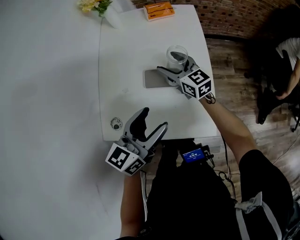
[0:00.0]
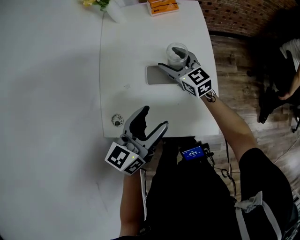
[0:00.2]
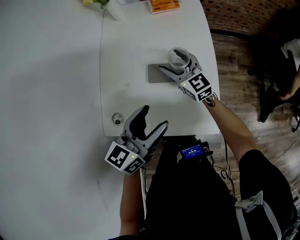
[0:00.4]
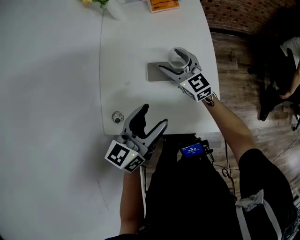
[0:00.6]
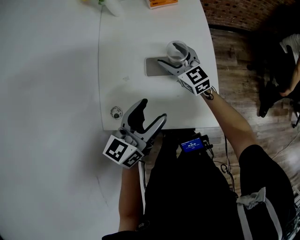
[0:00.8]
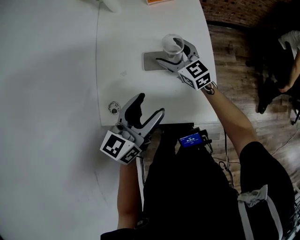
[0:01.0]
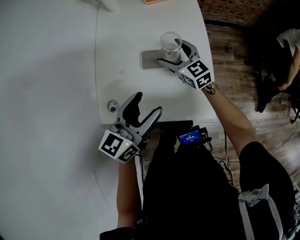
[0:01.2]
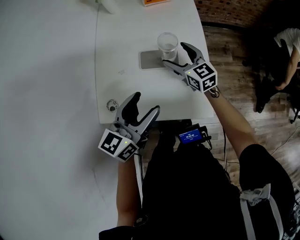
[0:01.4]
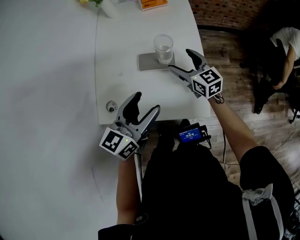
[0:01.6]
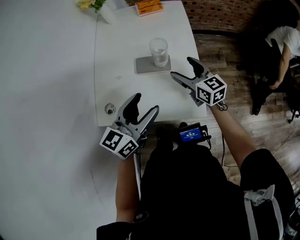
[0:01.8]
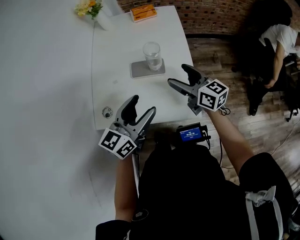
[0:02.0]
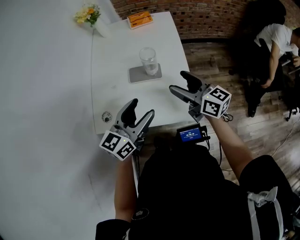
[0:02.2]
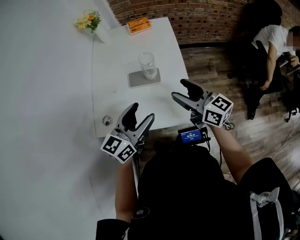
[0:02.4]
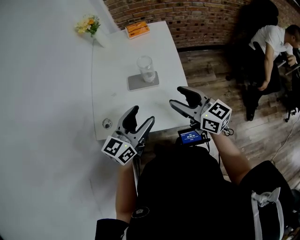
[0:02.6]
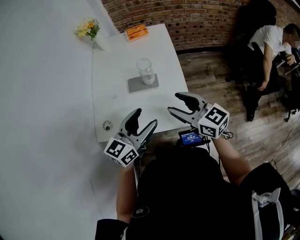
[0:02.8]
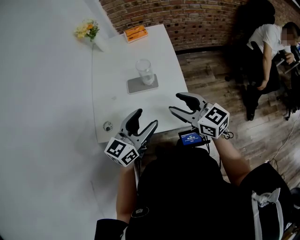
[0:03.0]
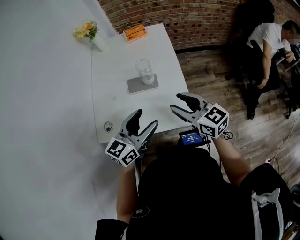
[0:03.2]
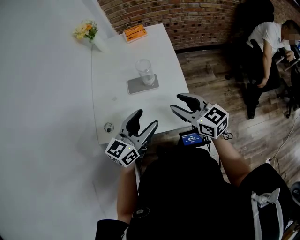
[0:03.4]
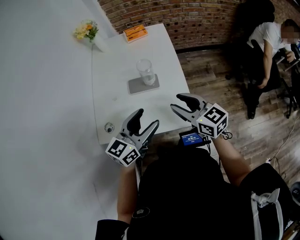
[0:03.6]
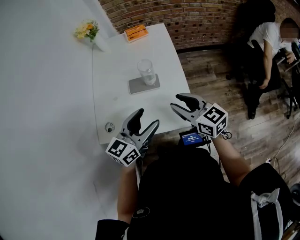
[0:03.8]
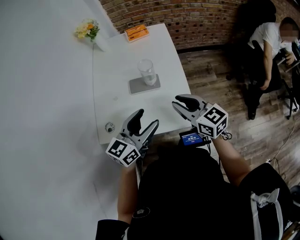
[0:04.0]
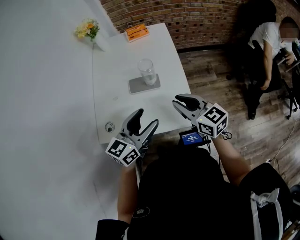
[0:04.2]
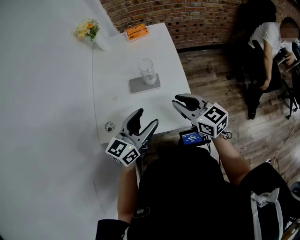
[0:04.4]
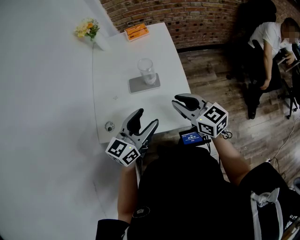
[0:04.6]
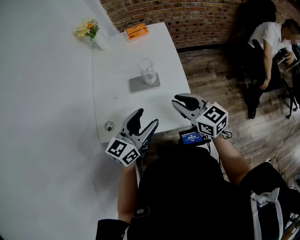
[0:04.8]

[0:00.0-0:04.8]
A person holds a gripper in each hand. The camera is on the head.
0:00.0 to 0:01.6: The right gripper heads backward and to the right, covering about 10 cm.
0:01.6 to 0:03.2: The right gripper travels backward and upward by some 20 cm, and closes up. Meanwhile the left gripper changes place by roughly 5 cm.
0:03.2 to 0:04.8: Both grippers stay put.

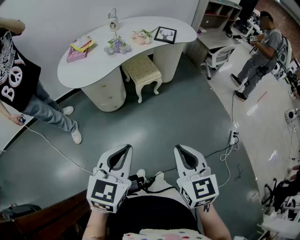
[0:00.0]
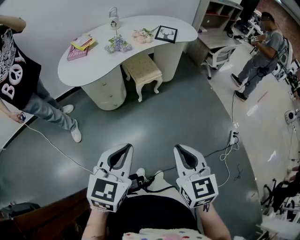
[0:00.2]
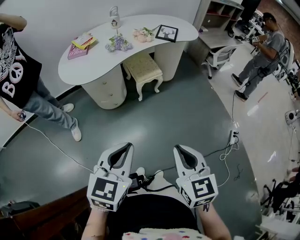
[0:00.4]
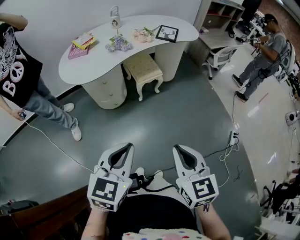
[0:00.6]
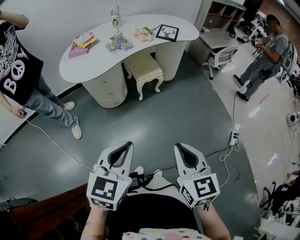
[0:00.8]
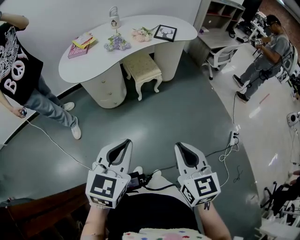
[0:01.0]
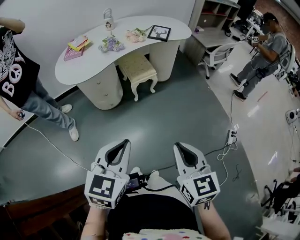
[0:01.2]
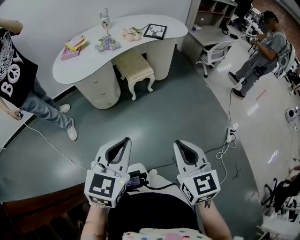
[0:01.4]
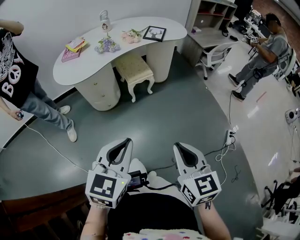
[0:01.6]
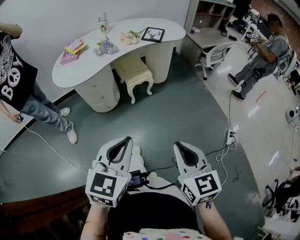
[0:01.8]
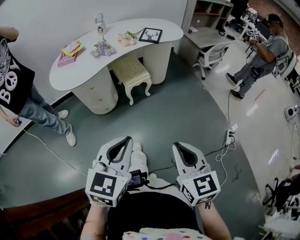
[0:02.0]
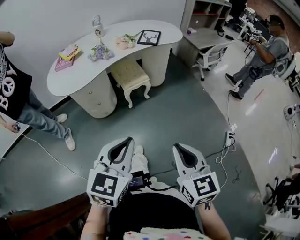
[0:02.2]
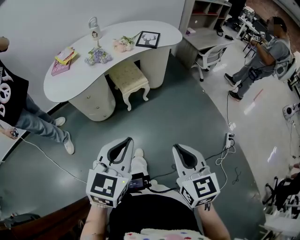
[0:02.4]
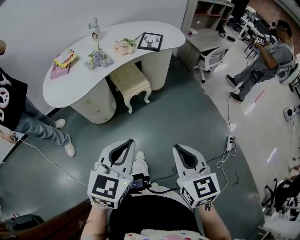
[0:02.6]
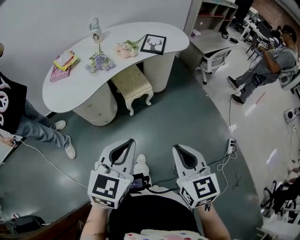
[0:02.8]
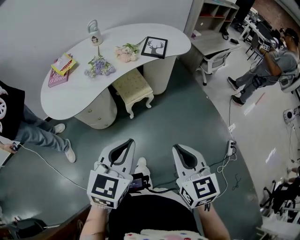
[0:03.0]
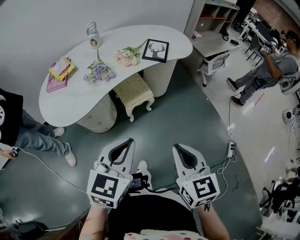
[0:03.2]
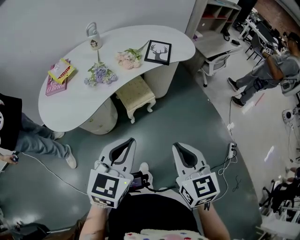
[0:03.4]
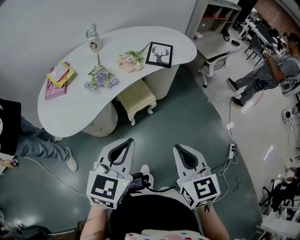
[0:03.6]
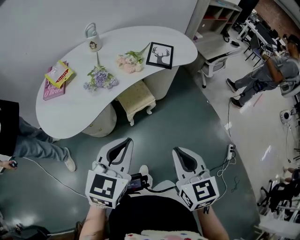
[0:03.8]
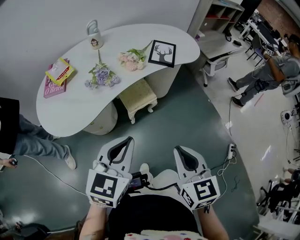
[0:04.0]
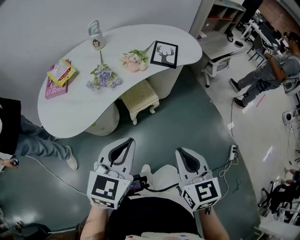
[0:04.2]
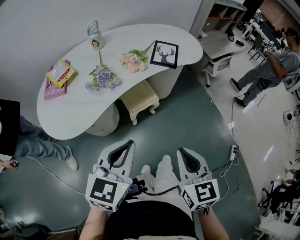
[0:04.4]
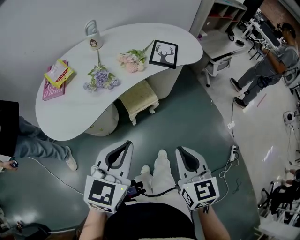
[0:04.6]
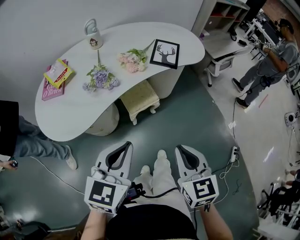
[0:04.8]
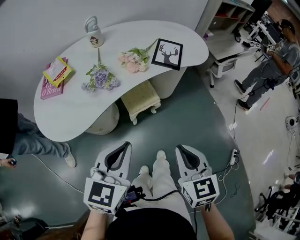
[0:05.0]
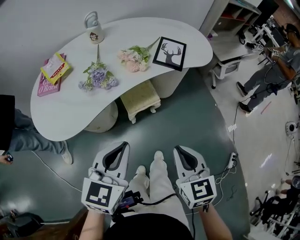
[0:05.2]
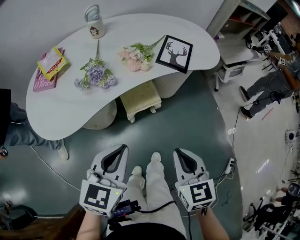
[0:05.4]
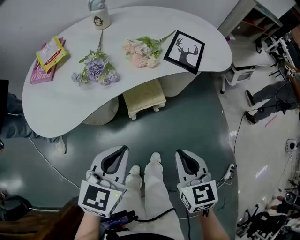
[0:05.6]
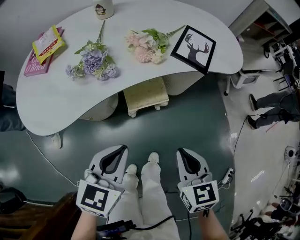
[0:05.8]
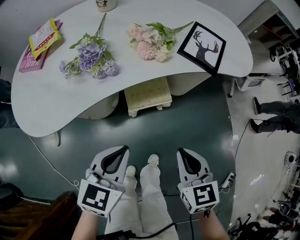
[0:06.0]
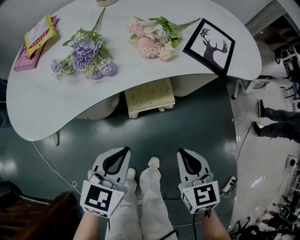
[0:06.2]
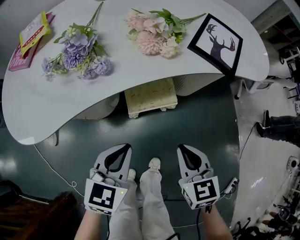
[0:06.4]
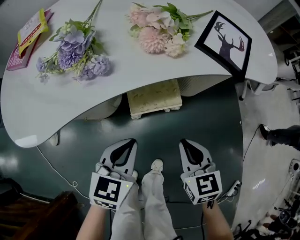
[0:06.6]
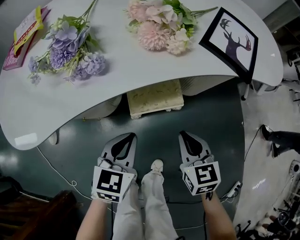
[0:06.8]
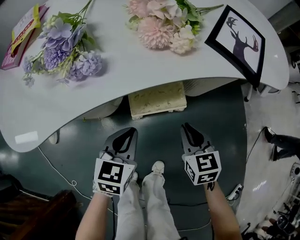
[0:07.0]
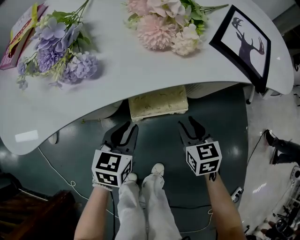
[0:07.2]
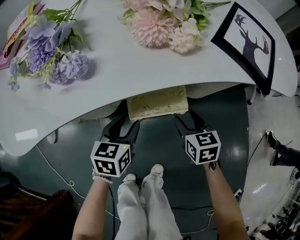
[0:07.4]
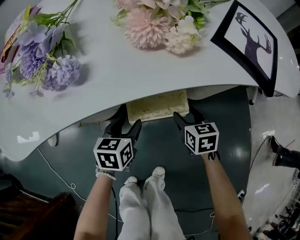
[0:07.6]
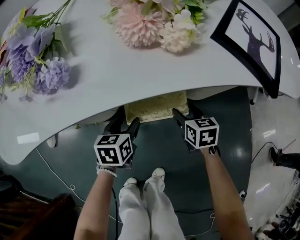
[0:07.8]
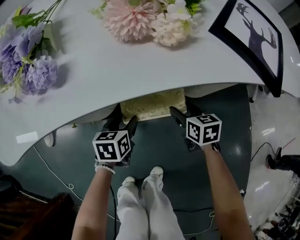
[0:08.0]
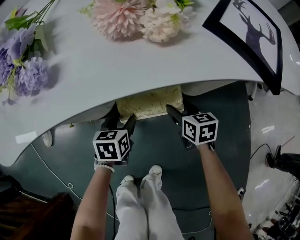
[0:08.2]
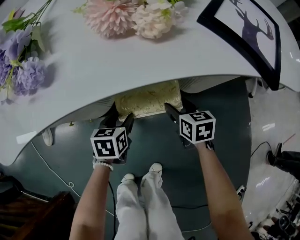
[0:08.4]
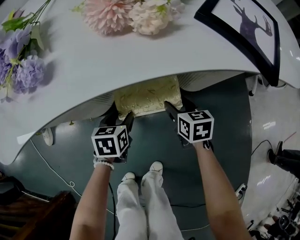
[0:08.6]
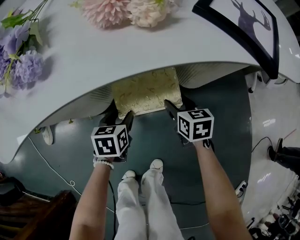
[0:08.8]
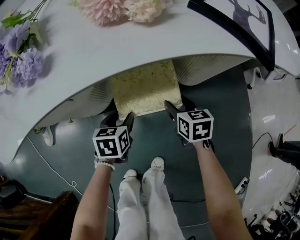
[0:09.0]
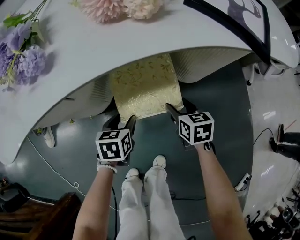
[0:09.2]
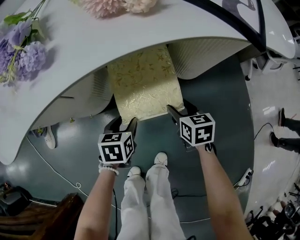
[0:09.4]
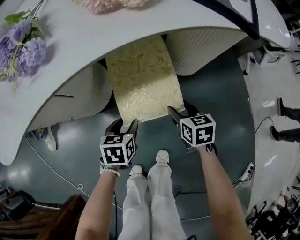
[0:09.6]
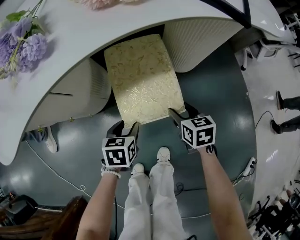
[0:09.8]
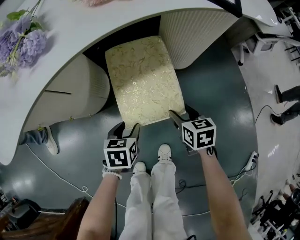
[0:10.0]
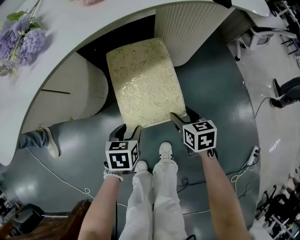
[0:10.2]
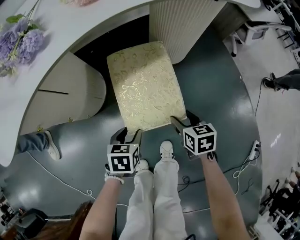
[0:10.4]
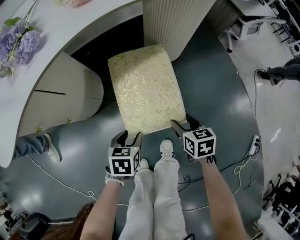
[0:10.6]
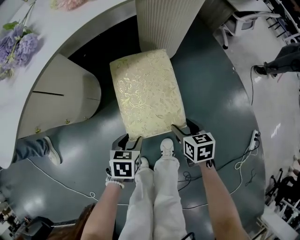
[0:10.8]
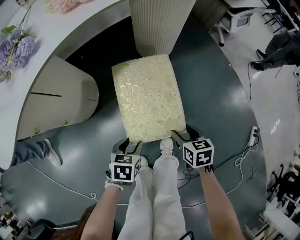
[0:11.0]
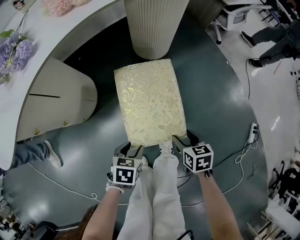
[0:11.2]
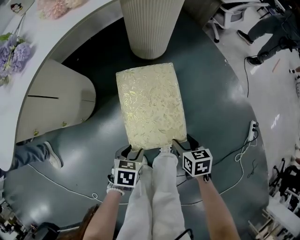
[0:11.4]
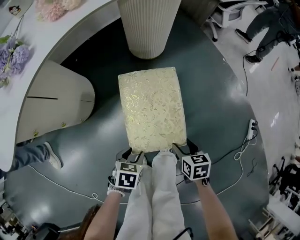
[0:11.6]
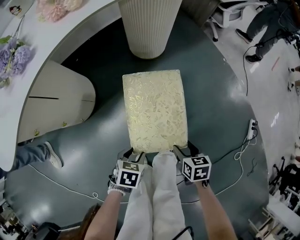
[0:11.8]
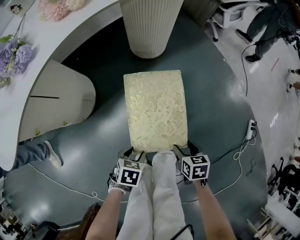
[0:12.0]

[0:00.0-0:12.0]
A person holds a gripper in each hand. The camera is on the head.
0:00.0 to 0:01.6: Both grippers move to the right, about 10 cm.
0:01.6 to 0:03.0: Both grippers move forward, about 20 cm.
0:03.0 to 0:04.4: The left gripper heads forward and to the left, covering some 15 cm; the right gripper shifts about 10 cm forward.
0:04.4 to 0:06.0: Both grippers travel together downward and forward, some 25 cm. The right gripper swivels about 20 degrees.
0:06.0 to 0:07.6: Both grippers travel together downward and forward, about 35 cm. The right gripper opens. Meanwhile the left gripper changes its angle by approximately 30 degrees, and opens.
0:07.6 to 0:09.0: The left gripper goes approximately 5 cm downward.
0:09.0 to 0:10.4: Both grippers move backward, some 15 cm.
0:10.4 to 0:12.0: The right gripper changes place by roughly 20 cm, and turns by some 20 degrees; the left gripper moves about 15 cm, and changes its angle by about 30 degrees.

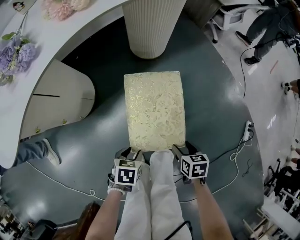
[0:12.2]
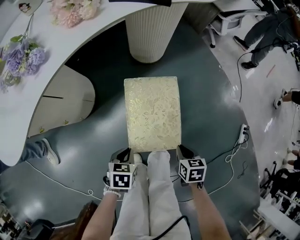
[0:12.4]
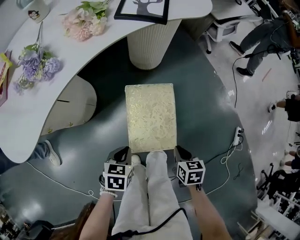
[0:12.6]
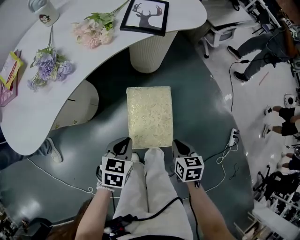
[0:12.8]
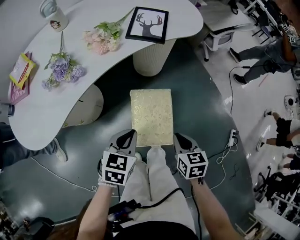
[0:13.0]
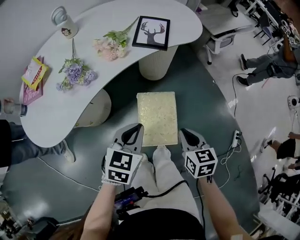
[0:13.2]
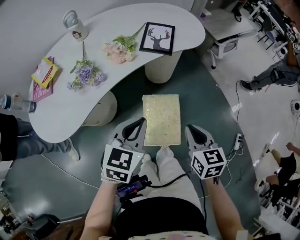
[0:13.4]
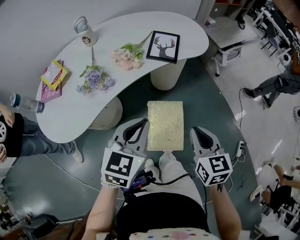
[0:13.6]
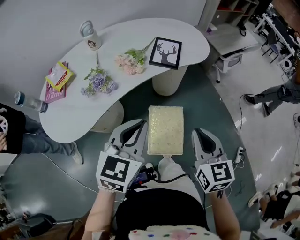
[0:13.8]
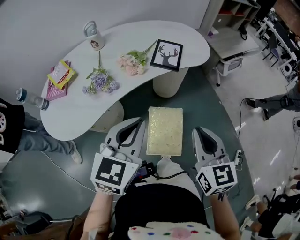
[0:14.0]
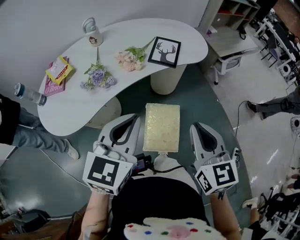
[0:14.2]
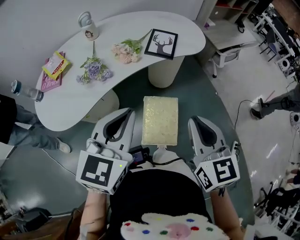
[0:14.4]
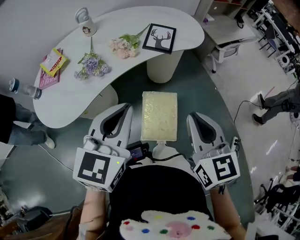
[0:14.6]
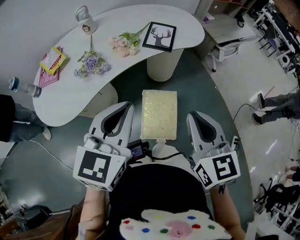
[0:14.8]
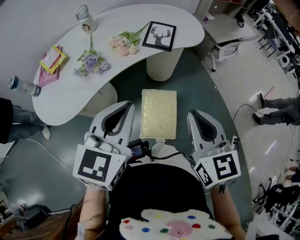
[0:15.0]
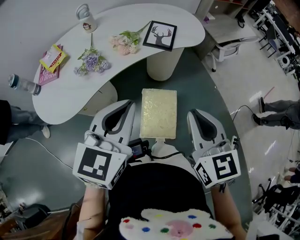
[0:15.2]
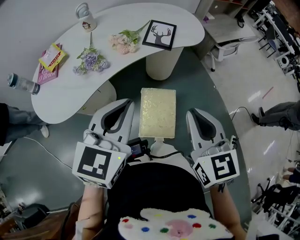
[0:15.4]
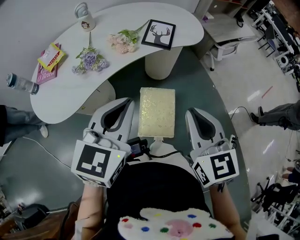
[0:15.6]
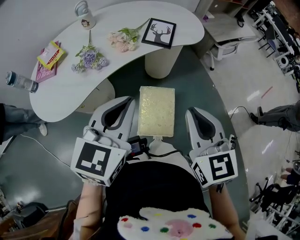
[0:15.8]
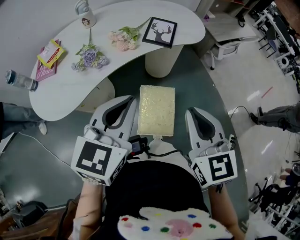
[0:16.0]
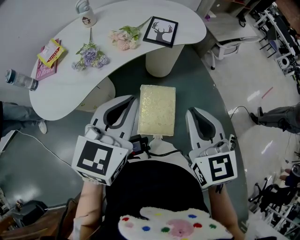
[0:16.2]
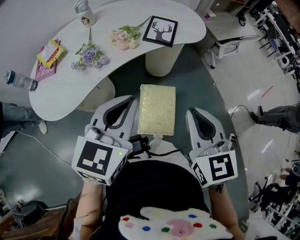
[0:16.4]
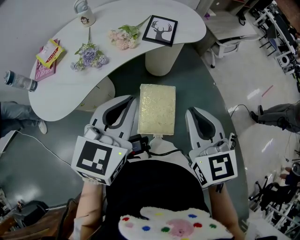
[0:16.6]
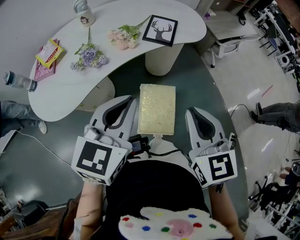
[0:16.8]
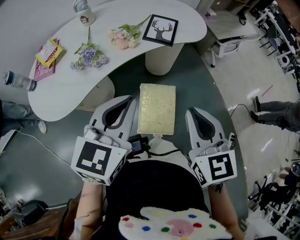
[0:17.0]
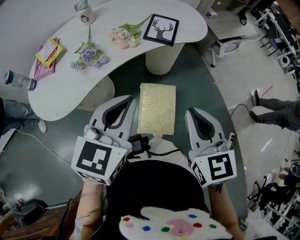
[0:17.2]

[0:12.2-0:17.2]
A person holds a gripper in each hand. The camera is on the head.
0:12.2 to 0:13.8: The two grippers go roughly 50 cm upward. The right gripper angles its fingers upward, by some 40 degrees, and closes its fingers. The left gripper tilts its fingers approximately 40 degrees upward, and closes its fingers.
0:13.8 to 0:15.6: The right gripper travels upward by approximately 5 cm, while the left gripper changes place by about 5 cm.
0:15.6 to 0:17.2: Neither gripper changes place.

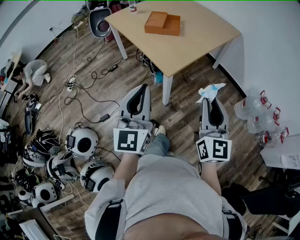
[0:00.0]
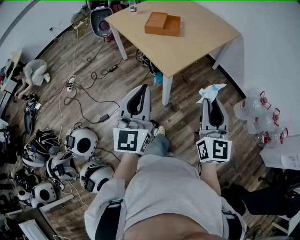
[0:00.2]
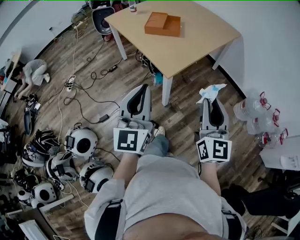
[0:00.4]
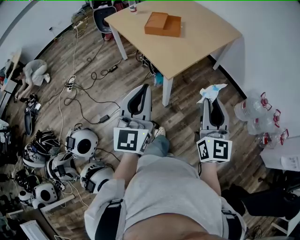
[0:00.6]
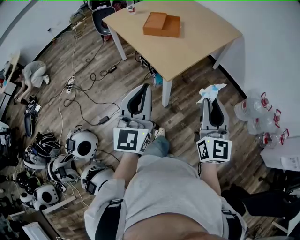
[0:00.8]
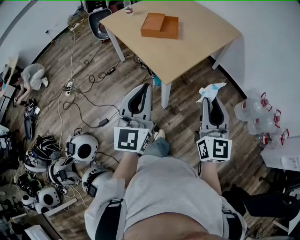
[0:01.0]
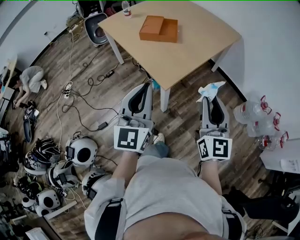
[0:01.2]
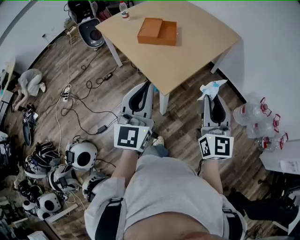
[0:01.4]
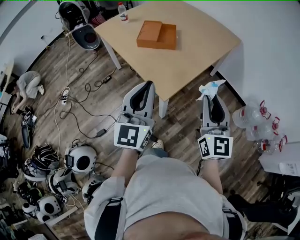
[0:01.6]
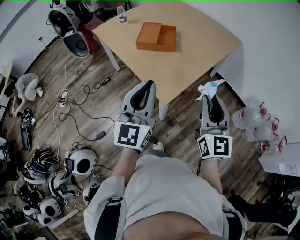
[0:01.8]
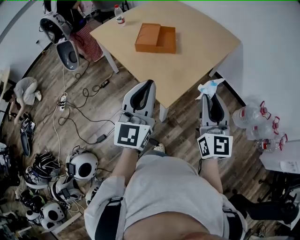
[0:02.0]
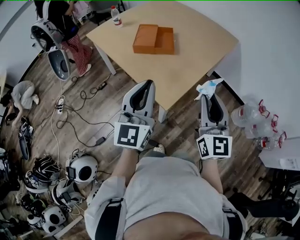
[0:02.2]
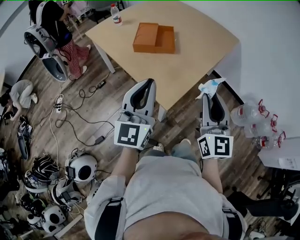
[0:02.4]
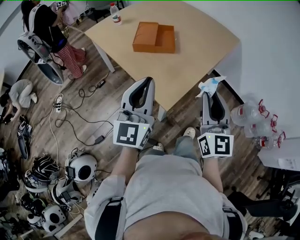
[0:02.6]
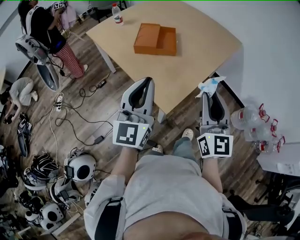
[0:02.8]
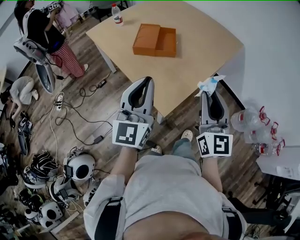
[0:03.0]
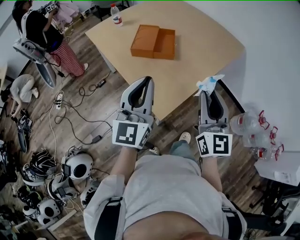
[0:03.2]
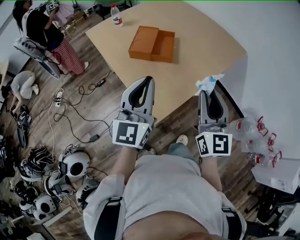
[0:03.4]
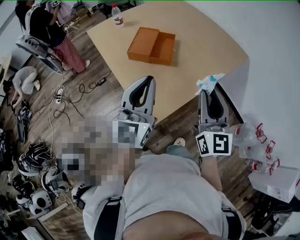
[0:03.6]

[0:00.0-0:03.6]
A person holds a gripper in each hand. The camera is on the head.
0:00.0 to 0:01.8: The two grippers go roughly 20 cm forward.
0:01.8 to 0:03.6: Both grippers travel together forward, approximately 15 cm.
